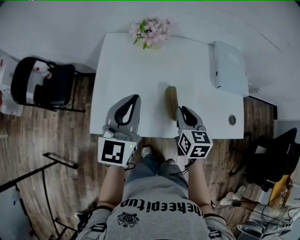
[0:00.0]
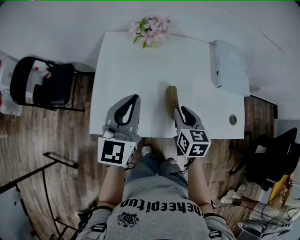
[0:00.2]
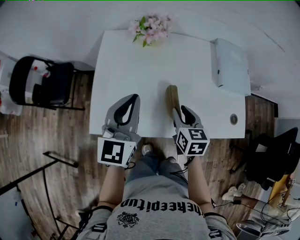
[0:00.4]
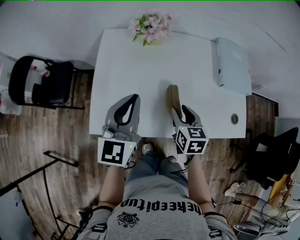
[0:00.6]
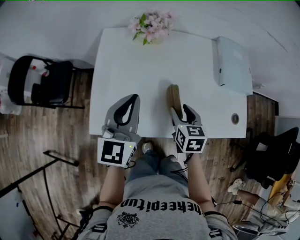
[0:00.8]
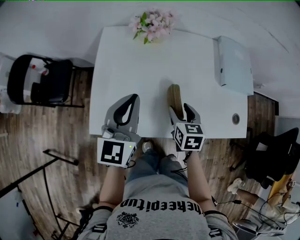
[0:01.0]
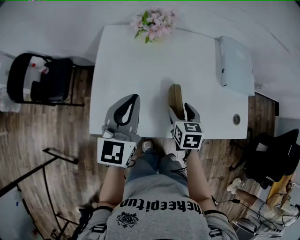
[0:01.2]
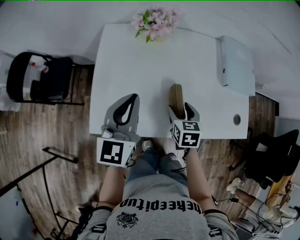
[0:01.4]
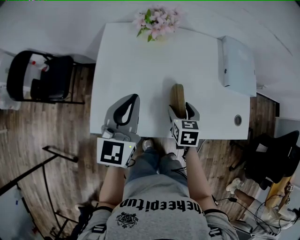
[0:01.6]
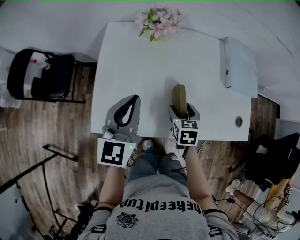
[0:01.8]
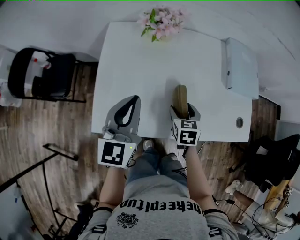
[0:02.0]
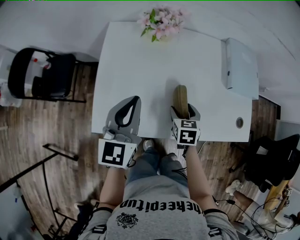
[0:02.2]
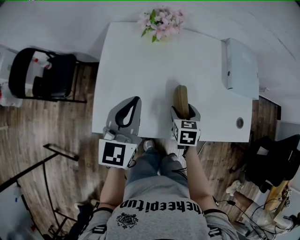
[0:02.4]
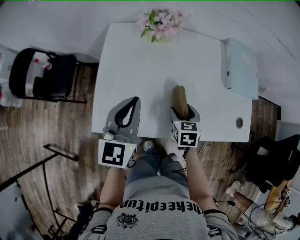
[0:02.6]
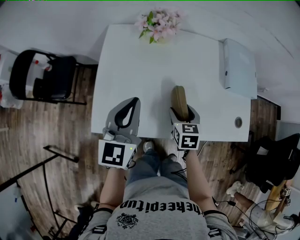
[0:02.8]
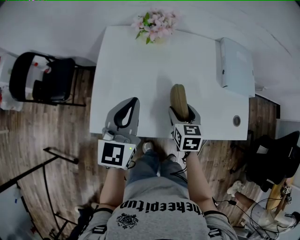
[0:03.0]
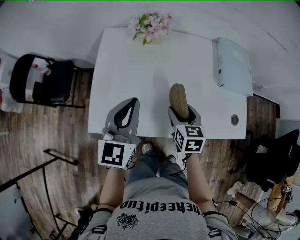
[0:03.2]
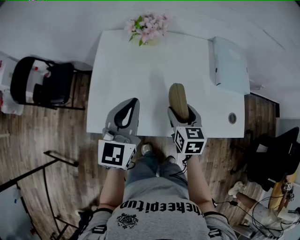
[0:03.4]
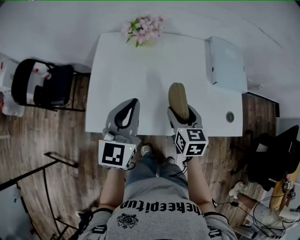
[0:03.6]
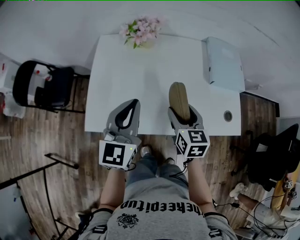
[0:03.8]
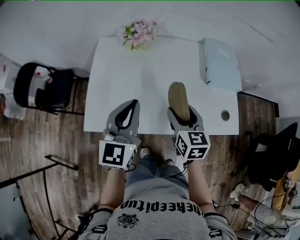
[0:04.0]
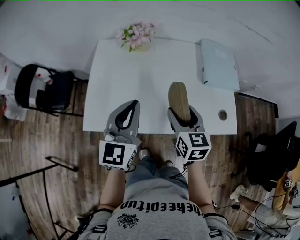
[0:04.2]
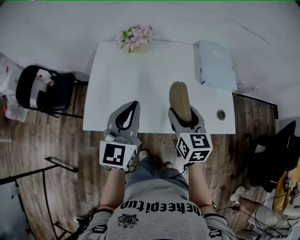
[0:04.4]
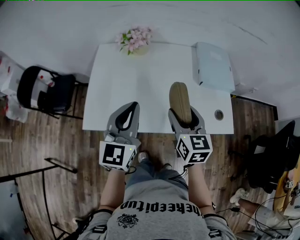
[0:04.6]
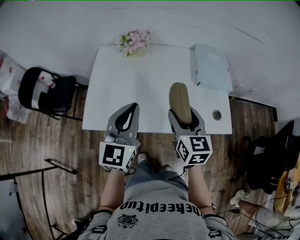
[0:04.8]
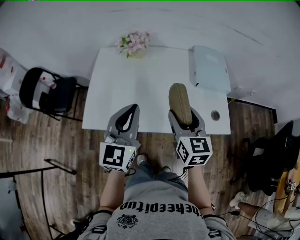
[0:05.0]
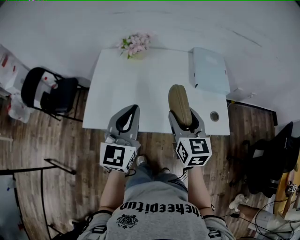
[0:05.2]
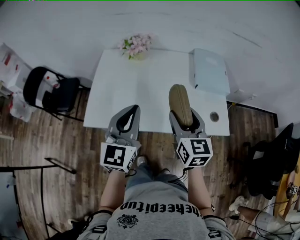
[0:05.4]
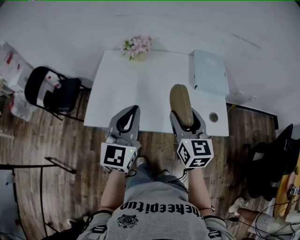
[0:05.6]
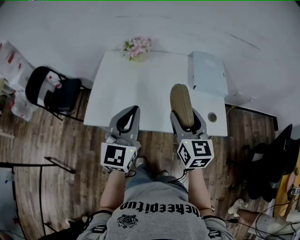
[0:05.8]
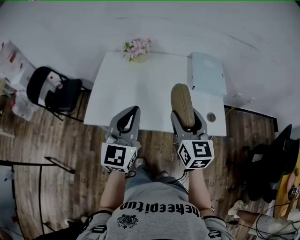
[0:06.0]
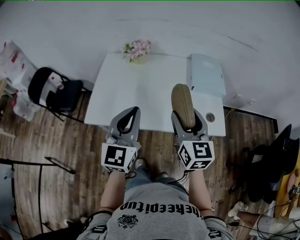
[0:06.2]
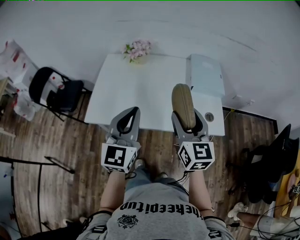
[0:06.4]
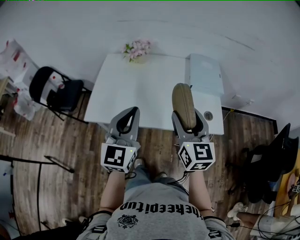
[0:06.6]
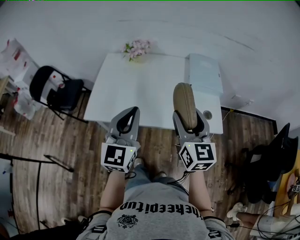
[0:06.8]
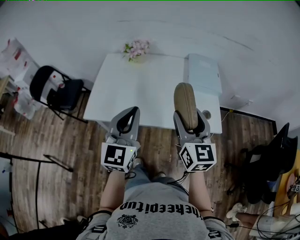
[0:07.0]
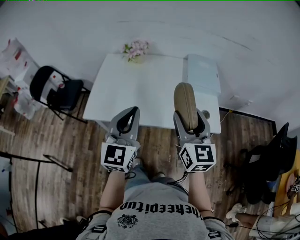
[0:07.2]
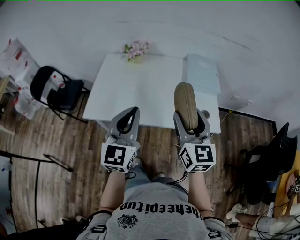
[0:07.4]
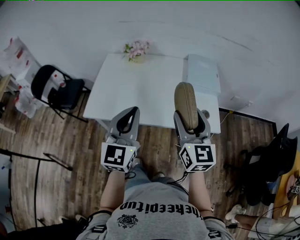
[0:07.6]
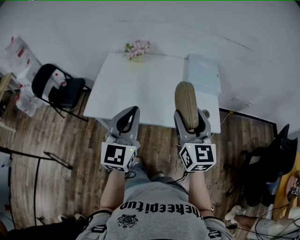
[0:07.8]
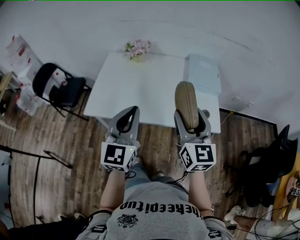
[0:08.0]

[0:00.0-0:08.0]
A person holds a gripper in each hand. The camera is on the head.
0:00.0 to 0:01.6: The right gripper moves downward, about 10 cm, and opens up.
0:01.6 to 0:03.2: The grippers move only a little.
0:03.2 to 0:04.8: The right gripper moves upward, to the right and backward, approximately 20 cm, while the left gripper moves to the right, backward and upward, approximately 15 cm.
0:04.8 to 0:06.4: The left gripper shifts roughly 10 cm backward; the right gripper is displaced backward and upward by some 10 cm.
0:06.4 to 0:08.0: The right gripper shifts by approximately 5 cm.

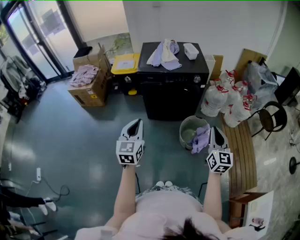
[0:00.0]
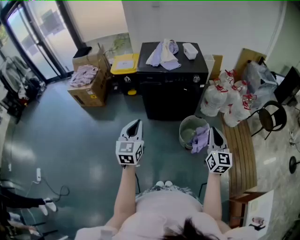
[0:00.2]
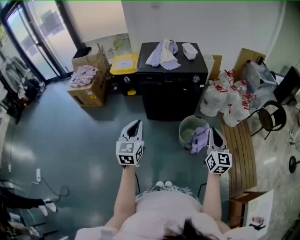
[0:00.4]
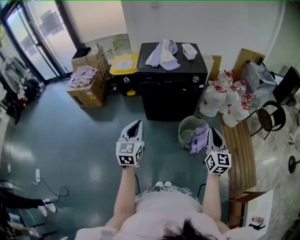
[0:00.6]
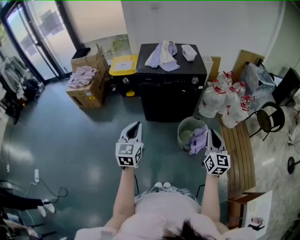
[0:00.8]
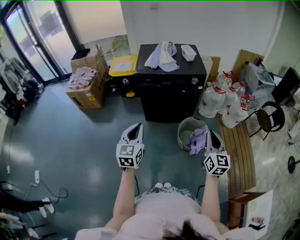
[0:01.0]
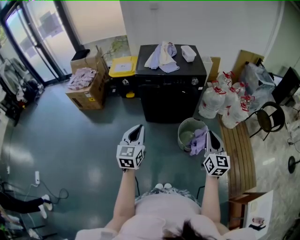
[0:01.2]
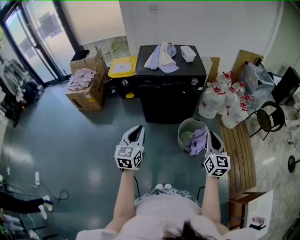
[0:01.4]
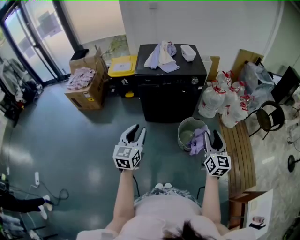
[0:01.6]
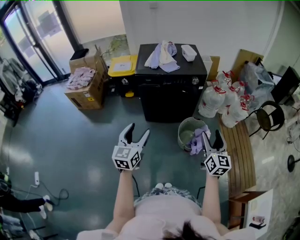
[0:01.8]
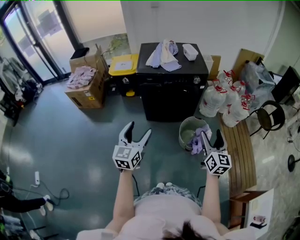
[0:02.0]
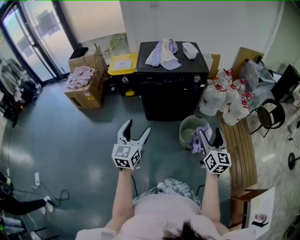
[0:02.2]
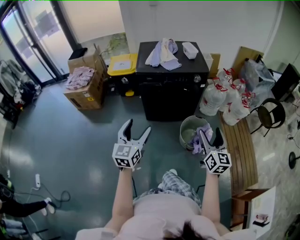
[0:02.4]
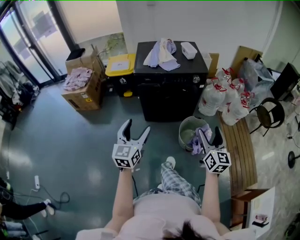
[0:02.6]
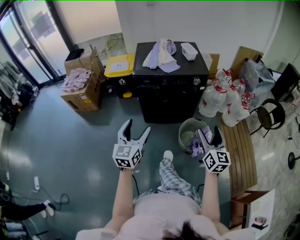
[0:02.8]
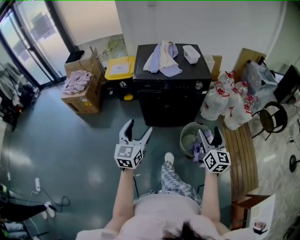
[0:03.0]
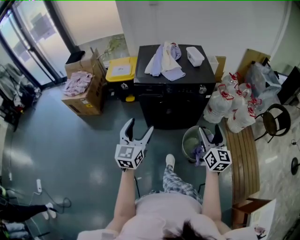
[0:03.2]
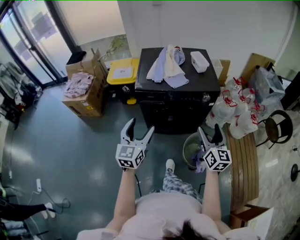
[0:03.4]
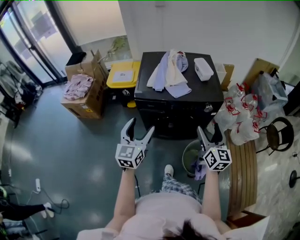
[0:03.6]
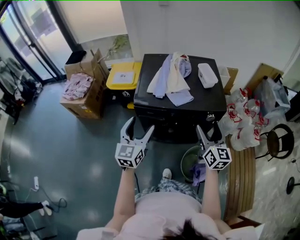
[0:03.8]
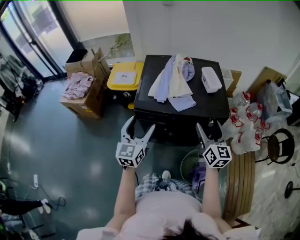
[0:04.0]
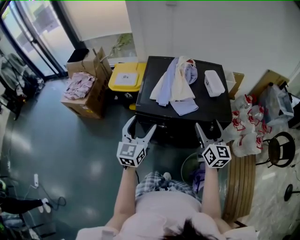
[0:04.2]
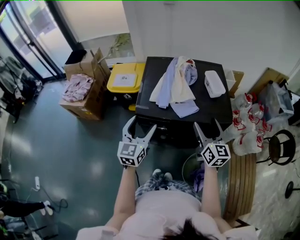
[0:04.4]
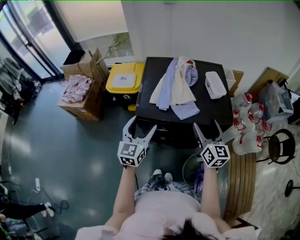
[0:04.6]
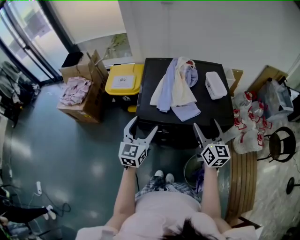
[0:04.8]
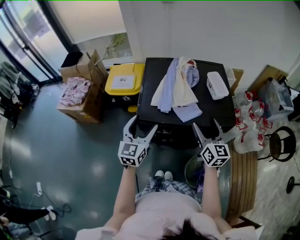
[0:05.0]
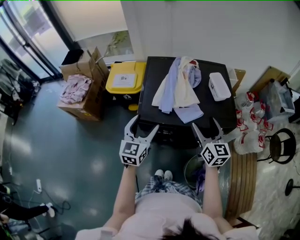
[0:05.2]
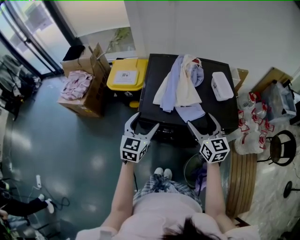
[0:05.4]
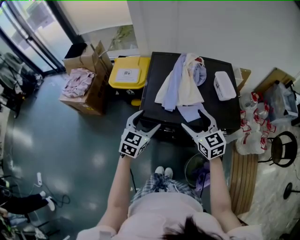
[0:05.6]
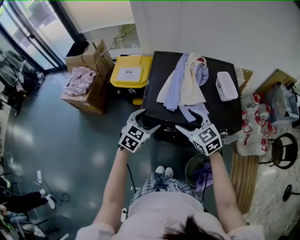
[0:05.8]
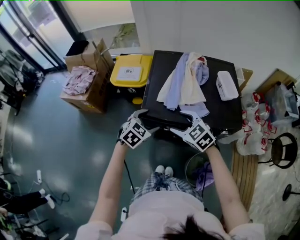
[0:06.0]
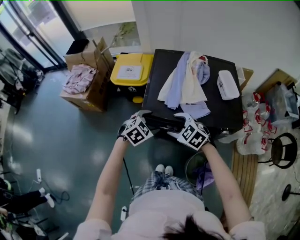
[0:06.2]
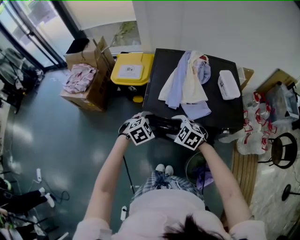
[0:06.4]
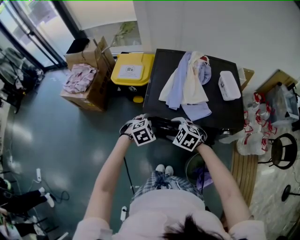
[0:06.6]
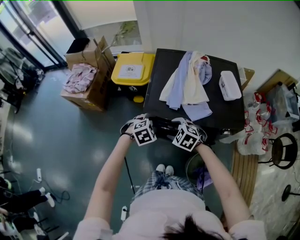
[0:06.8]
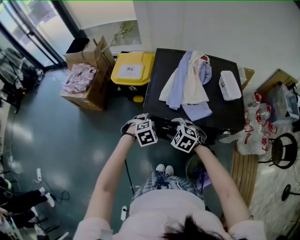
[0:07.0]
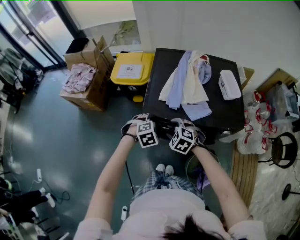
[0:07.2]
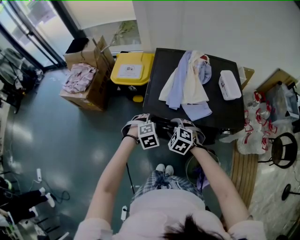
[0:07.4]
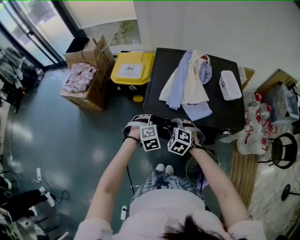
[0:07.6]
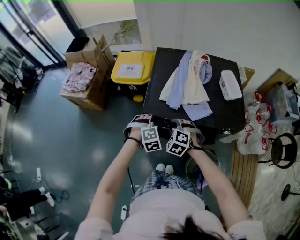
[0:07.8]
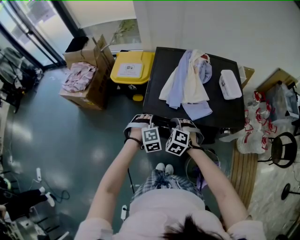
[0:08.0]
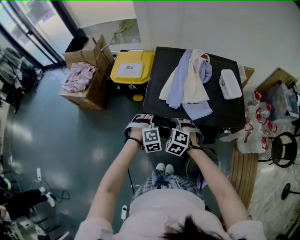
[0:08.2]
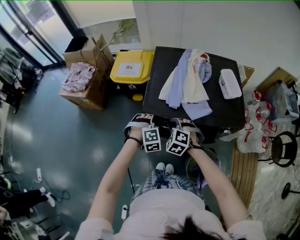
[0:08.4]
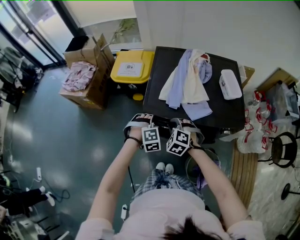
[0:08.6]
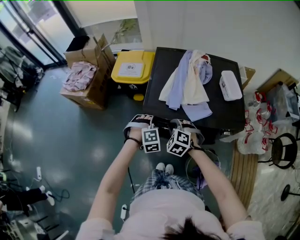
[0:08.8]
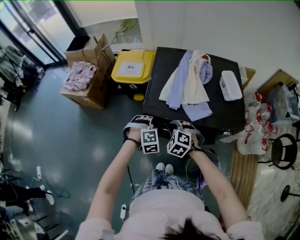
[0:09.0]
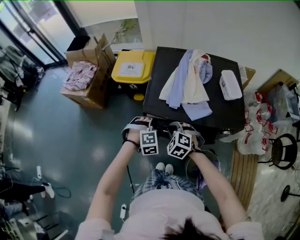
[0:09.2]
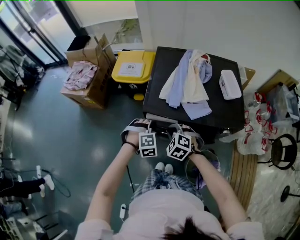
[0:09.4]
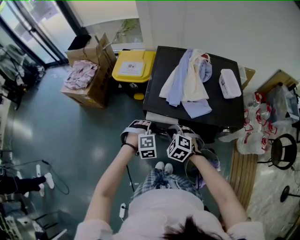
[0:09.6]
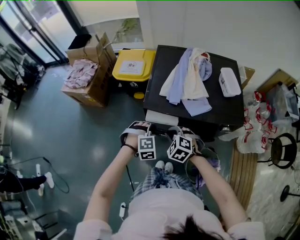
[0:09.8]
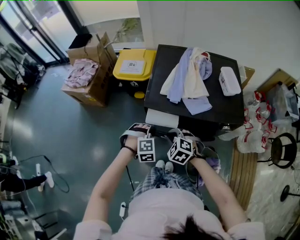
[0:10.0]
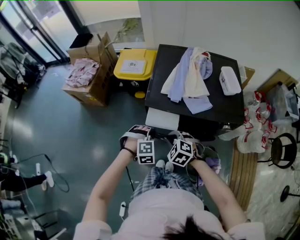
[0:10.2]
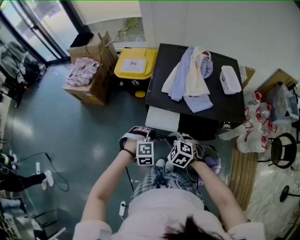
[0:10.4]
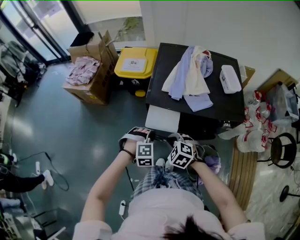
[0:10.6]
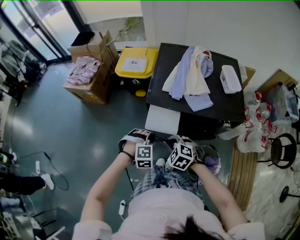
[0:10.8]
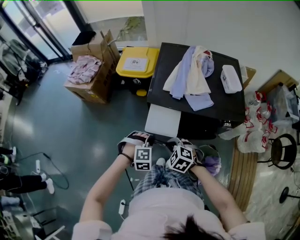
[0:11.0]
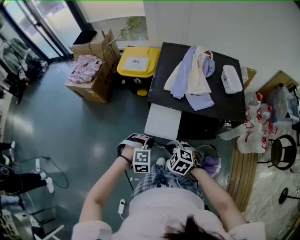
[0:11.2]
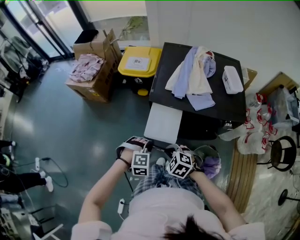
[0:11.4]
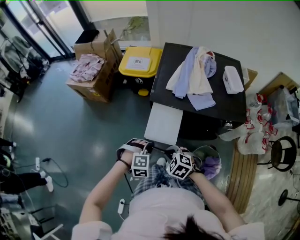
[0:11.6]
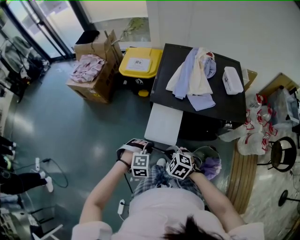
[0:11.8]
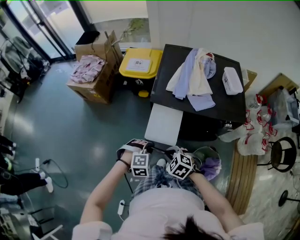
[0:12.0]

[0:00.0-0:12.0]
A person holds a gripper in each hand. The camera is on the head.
0:00.0 to 0:01.6: The right gripper opens.
0:01.6 to 0:03.0: The two grippers go roughly 10 cm forward. The right gripper opens its fingers; the left gripper opens.
0:03.0 to 0:04.4: The grippers both shift forward by some 40 cm.
0:04.4 to 0:06.0: The left gripper moves downward and forward, about 10 cm, and tips its fingers downward by approximately 40 degrees. Meanwhile the right gripper goes approximately 20 cm to the left and downward, and tips its fingers downward by about 30 degrees.
0:06.0 to 0:07.6: Both grippers move downward, about 10 cm. The right gripper turns by about 30 degrees, and closes its fingers; the left gripper changes its angle by roughly 40 degrees, and closes up.
0:07.6 to 0:09.0: The left gripper closes.
0:09.0 to 0:10.4: The two grippers go roughly 10 cm backward.
0:10.4 to 0:12.0: Both grippers travel together backward, about 10 cm.

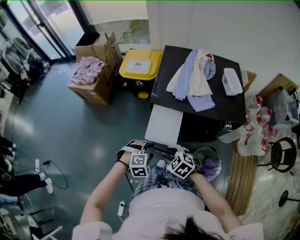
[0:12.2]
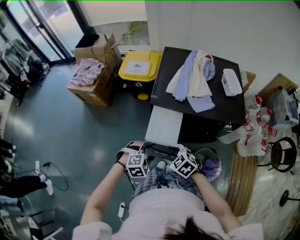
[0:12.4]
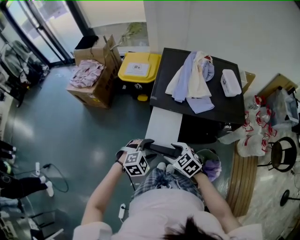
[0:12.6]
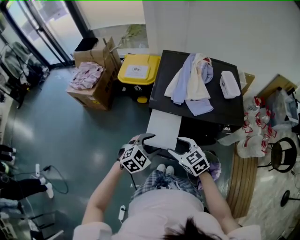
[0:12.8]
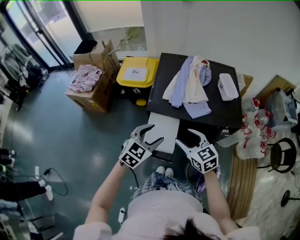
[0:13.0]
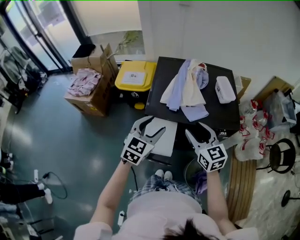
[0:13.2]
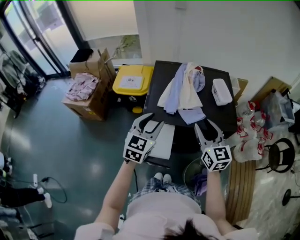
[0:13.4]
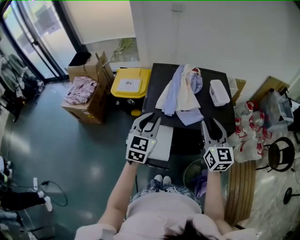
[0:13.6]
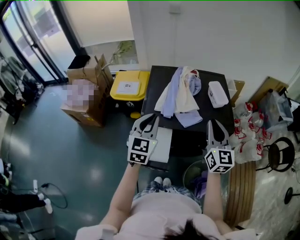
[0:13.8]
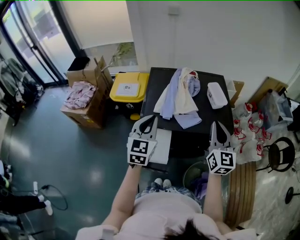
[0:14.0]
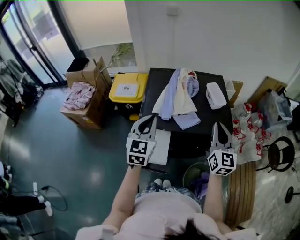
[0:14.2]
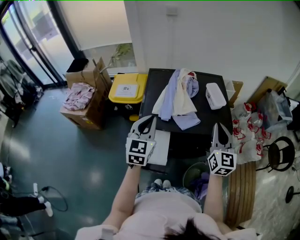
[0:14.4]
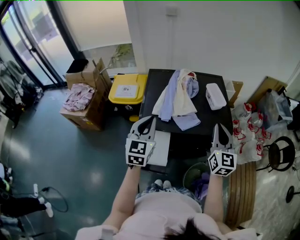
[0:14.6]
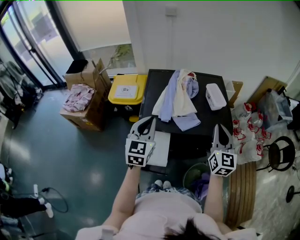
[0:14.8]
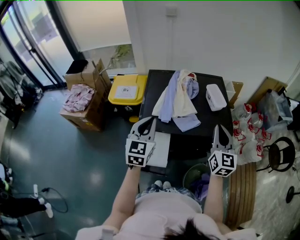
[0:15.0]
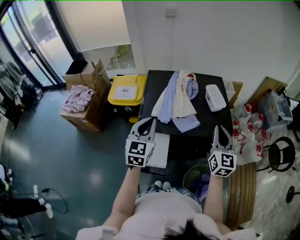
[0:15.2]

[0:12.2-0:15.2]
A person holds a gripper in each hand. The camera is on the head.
0:12.2 to 0:13.8: The right gripper moves upward, to the right and forward, approximately 40 cm, and points its fingers about 50 degrees further upward. Meanwhile the left gripper shifts approximately 30 cm upward and forward, points its fingers some 50 degrees further upward, and closes up.
0:13.8 to 0:15.2: The right gripper changes place by roughly 5 cm.
